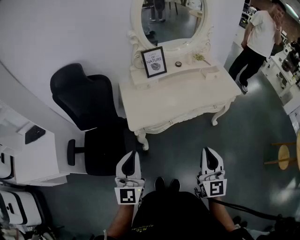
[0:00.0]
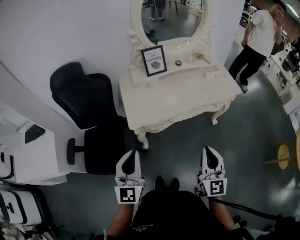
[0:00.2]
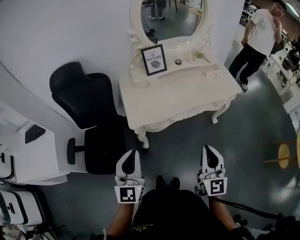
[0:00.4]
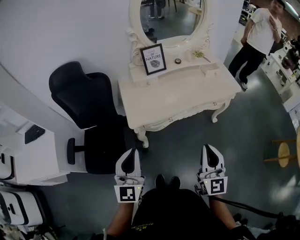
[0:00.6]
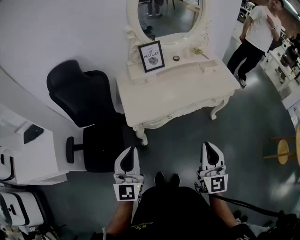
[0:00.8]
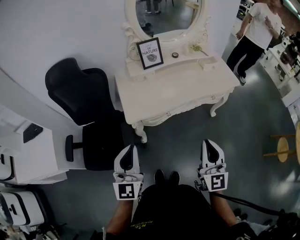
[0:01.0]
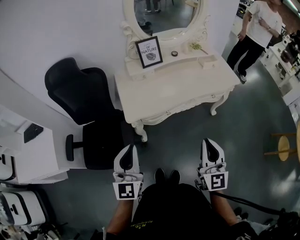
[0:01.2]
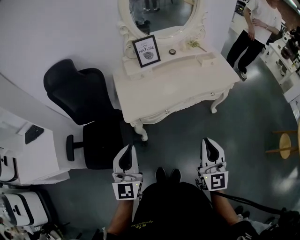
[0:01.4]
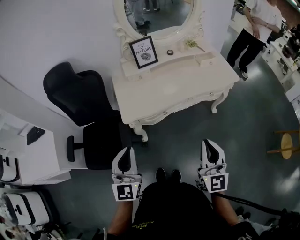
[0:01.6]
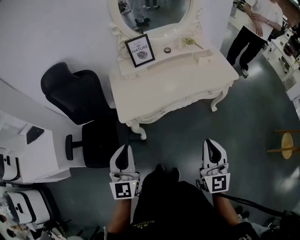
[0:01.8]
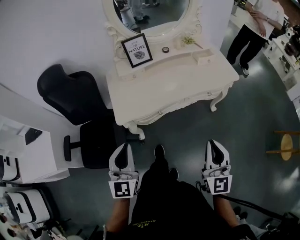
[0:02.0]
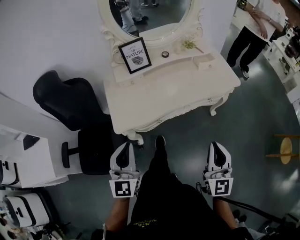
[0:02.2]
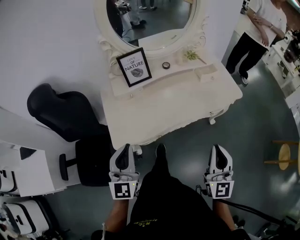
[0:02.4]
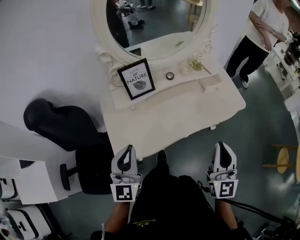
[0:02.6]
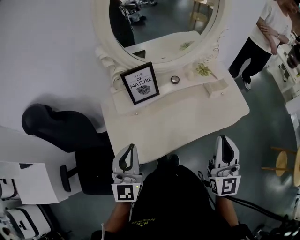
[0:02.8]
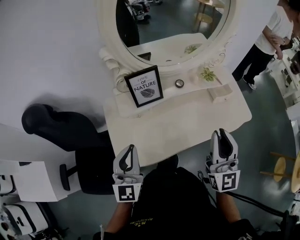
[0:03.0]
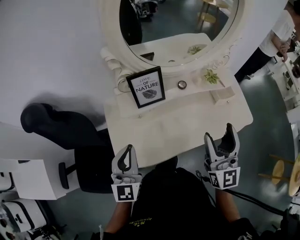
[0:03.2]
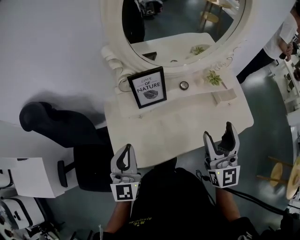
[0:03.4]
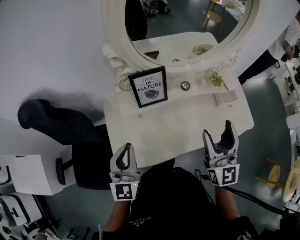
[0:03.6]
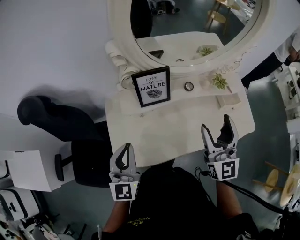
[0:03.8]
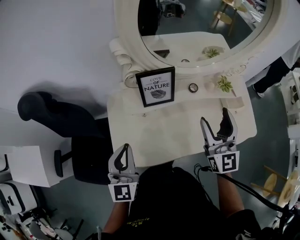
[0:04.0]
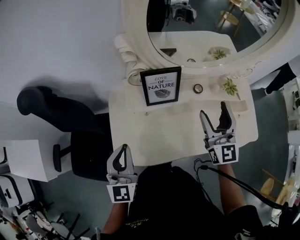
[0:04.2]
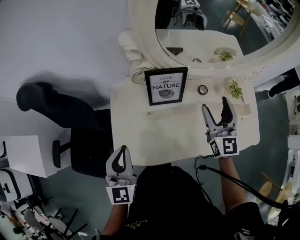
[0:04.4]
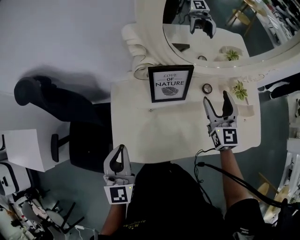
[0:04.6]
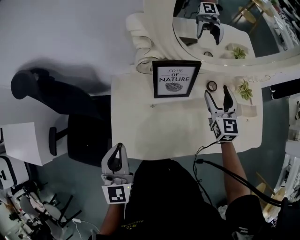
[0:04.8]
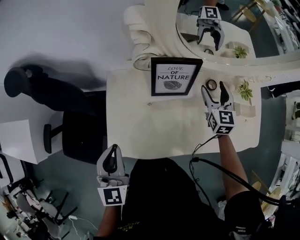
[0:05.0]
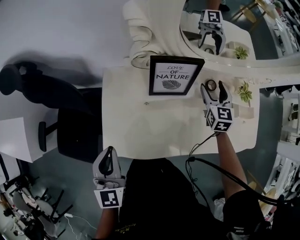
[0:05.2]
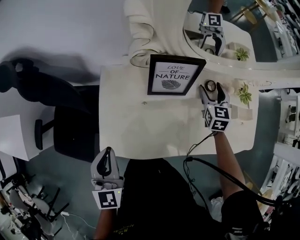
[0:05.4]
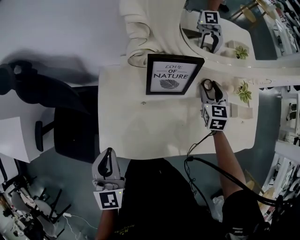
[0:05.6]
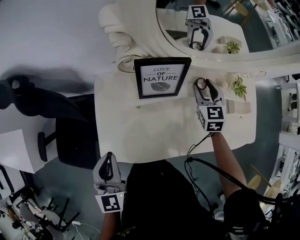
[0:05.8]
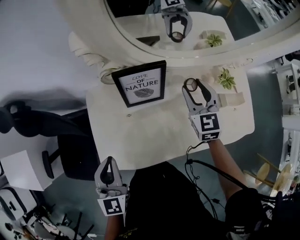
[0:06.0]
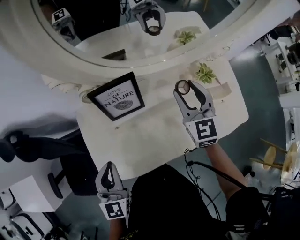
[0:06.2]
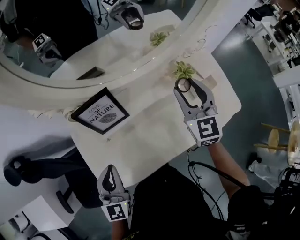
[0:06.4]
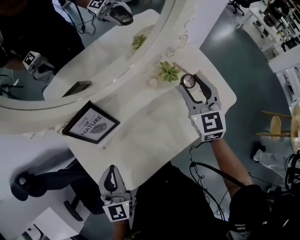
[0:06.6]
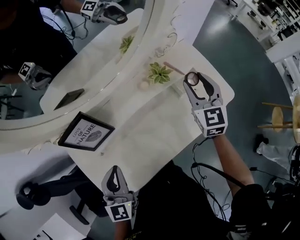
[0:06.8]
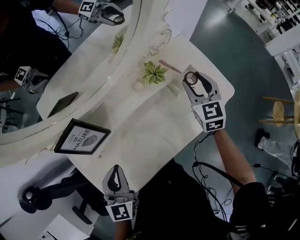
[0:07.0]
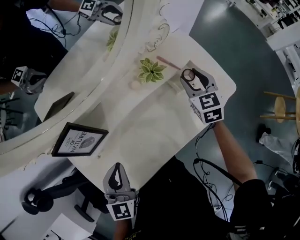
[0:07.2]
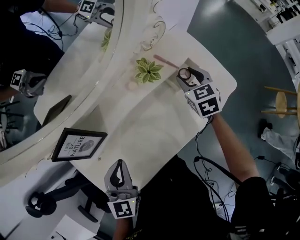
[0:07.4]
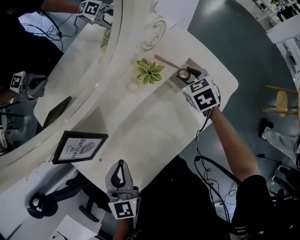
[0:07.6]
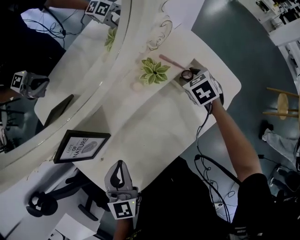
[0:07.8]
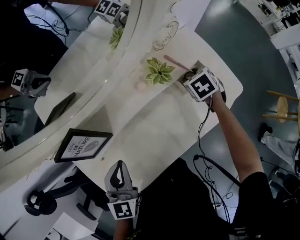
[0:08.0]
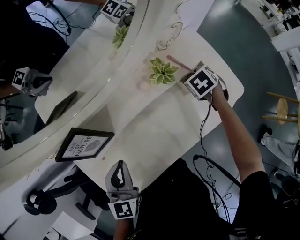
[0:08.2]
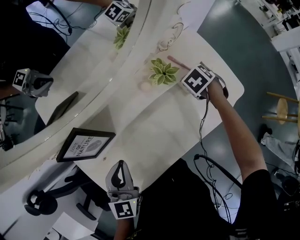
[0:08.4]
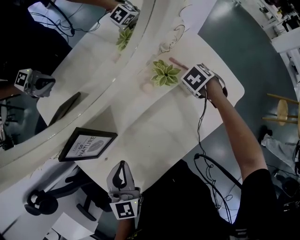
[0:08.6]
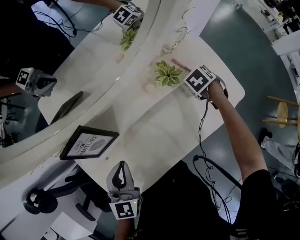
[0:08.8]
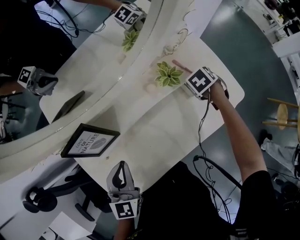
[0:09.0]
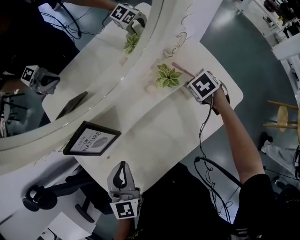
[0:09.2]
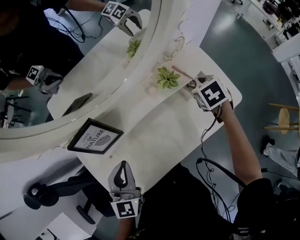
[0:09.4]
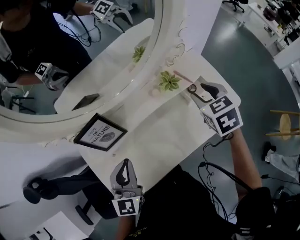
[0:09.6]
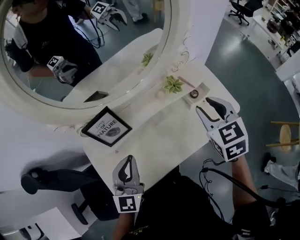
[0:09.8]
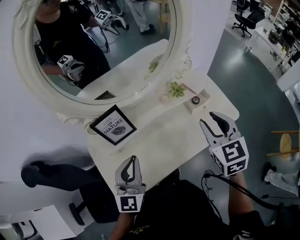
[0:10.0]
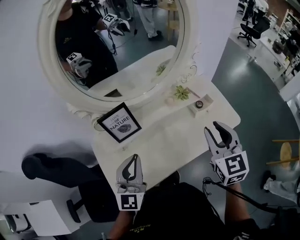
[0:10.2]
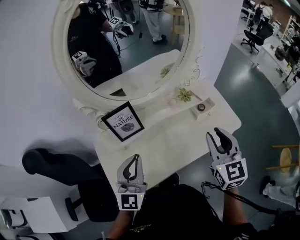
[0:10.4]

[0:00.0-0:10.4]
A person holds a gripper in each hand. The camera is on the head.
0:00.0 to 0:01.4: The grippers make only small movements.
0:01.4 to 0:03.0: The two grippers go about 35 cm forward.
0:03.0 to 0:04.4: The left gripper is displaced to the left by roughly 5 cm, while the right gripper heads forward and downward, covering roughly 25 cm, and opens up.
0:04.4 to 0:06.0: The right gripper shifts roughly 10 cm downward and forward, rotates roughly 20 degrees, and closes up.
0:06.0 to 0:07.4: The right gripper shifts by roughly 30 cm, and rotates some 30 degrees. The left gripper changes place by some 25 cm, and turns by about 30 degrees.
0:07.4 to 0:09.0: The right gripper moves downward, roughly 5 cm, and tilts its fingers about 40 degrees downward.
0:09.0 to 0:10.4: The right gripper moves upward, some 35 cm, and tips its fingers upward by approximately 60 degrees, while the left gripper goes some 15 cm upward, and swivels approximately 20 degrees.

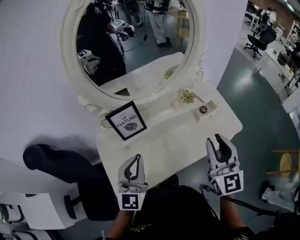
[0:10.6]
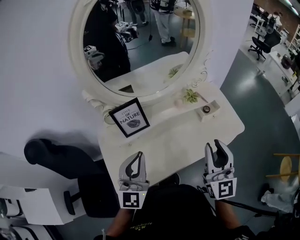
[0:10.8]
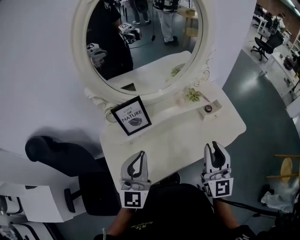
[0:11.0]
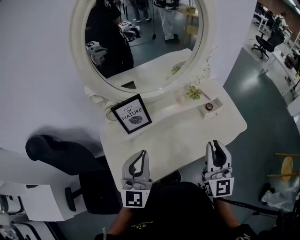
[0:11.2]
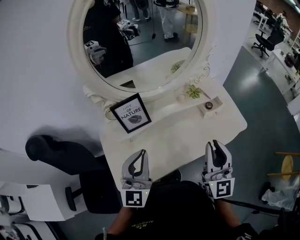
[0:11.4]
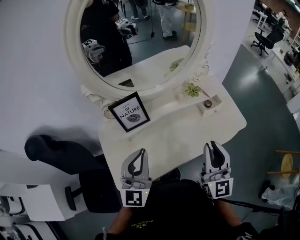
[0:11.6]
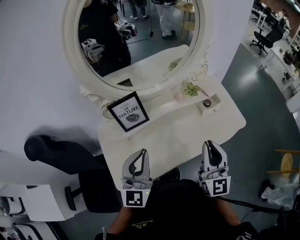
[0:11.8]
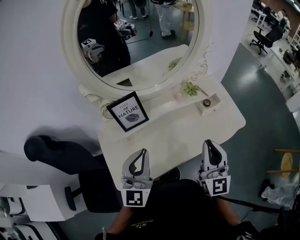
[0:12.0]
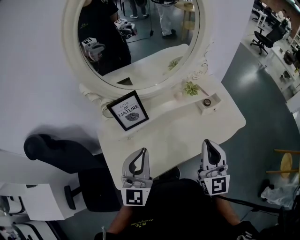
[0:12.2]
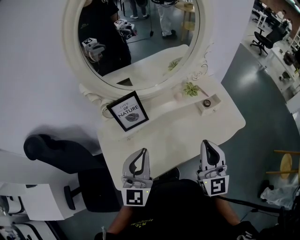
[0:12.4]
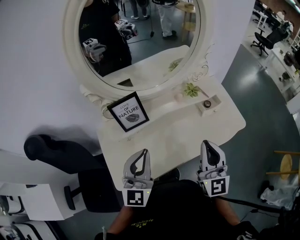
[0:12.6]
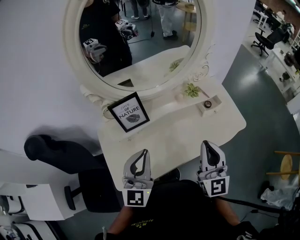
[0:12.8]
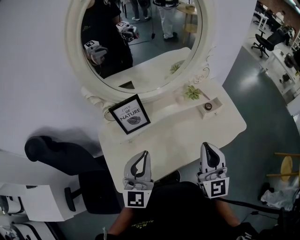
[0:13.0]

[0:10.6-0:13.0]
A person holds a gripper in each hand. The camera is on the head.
0:10.6 to 0:11.8: The right gripper ends up roughly 5 cm from where it was.
0:11.8 to 0:13.0: There are only small adjustments of the grippers.

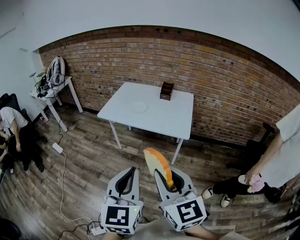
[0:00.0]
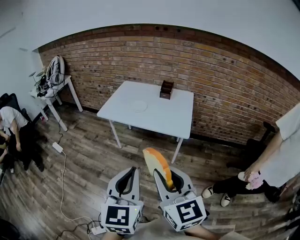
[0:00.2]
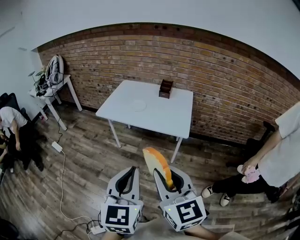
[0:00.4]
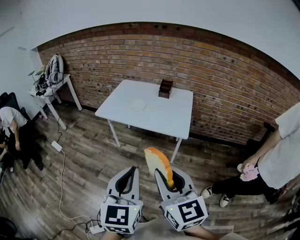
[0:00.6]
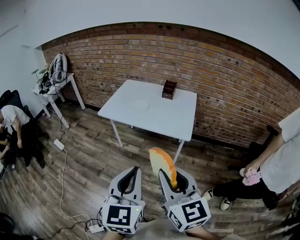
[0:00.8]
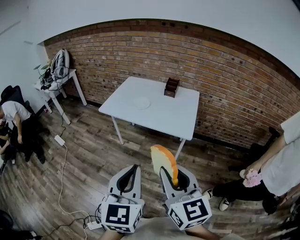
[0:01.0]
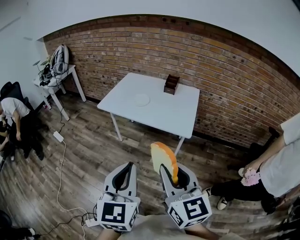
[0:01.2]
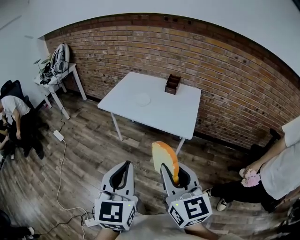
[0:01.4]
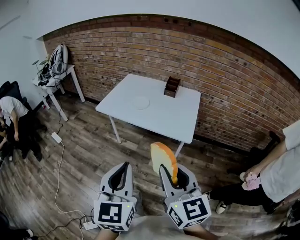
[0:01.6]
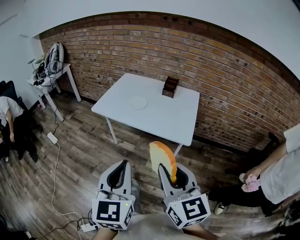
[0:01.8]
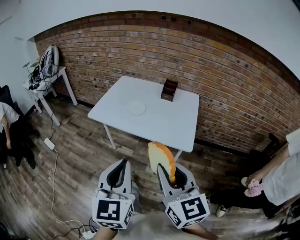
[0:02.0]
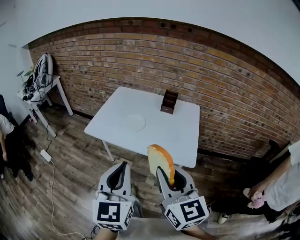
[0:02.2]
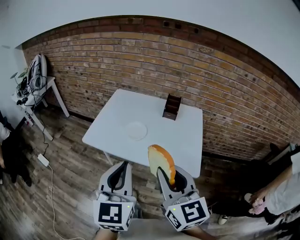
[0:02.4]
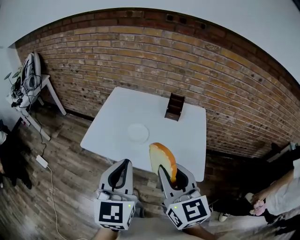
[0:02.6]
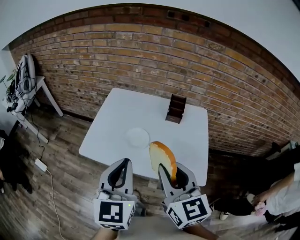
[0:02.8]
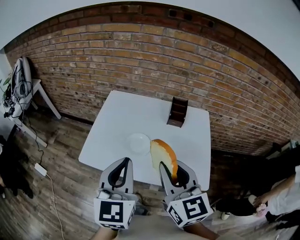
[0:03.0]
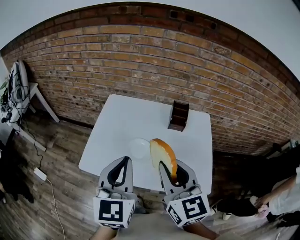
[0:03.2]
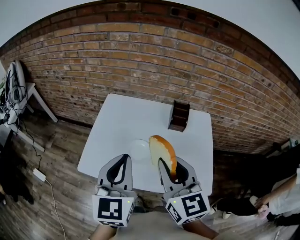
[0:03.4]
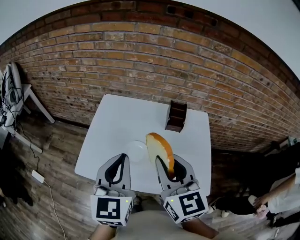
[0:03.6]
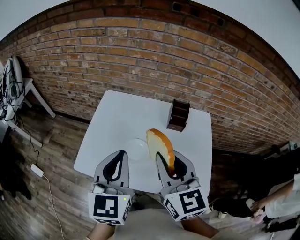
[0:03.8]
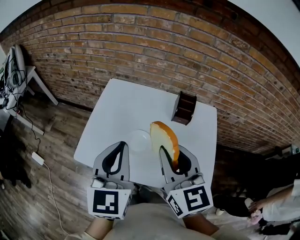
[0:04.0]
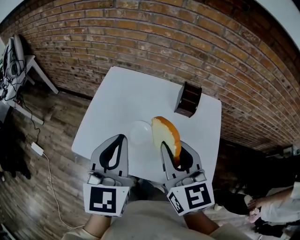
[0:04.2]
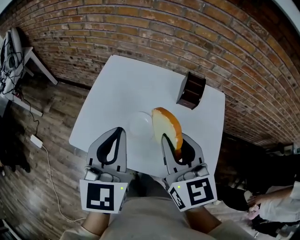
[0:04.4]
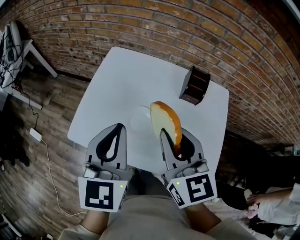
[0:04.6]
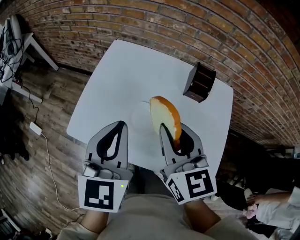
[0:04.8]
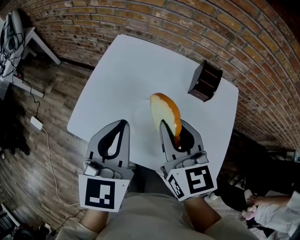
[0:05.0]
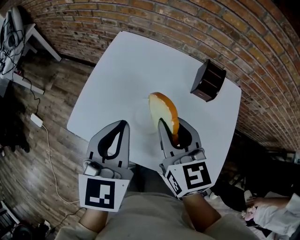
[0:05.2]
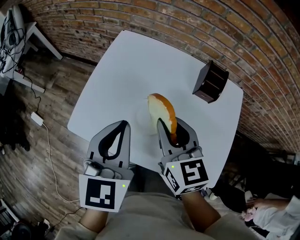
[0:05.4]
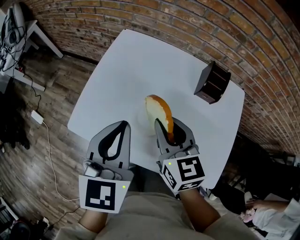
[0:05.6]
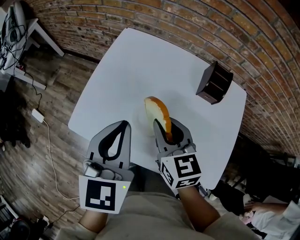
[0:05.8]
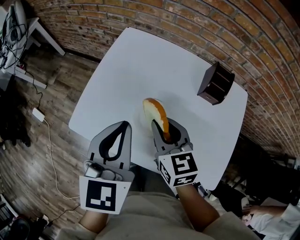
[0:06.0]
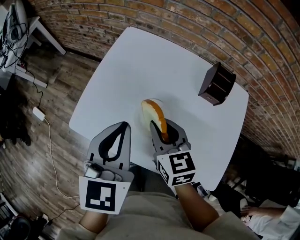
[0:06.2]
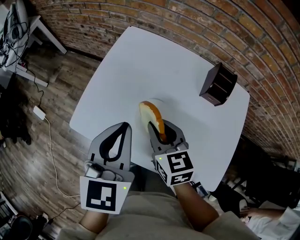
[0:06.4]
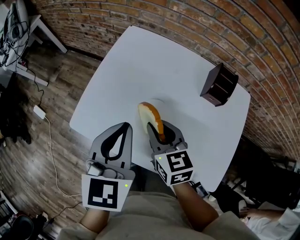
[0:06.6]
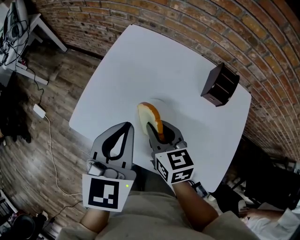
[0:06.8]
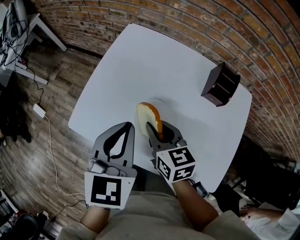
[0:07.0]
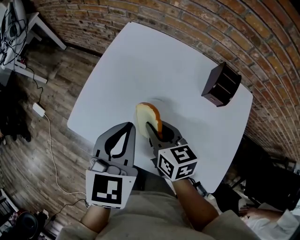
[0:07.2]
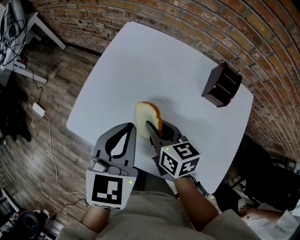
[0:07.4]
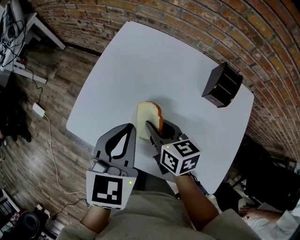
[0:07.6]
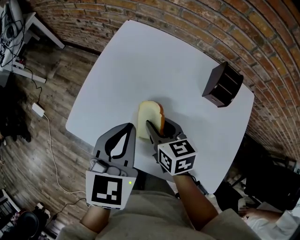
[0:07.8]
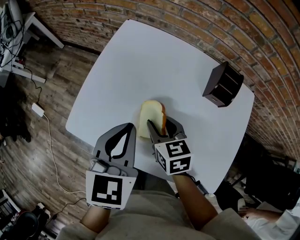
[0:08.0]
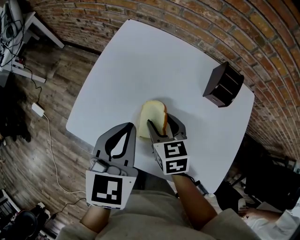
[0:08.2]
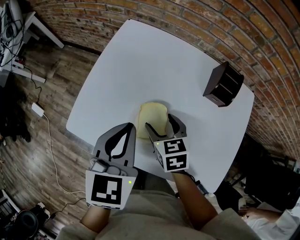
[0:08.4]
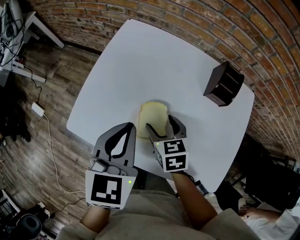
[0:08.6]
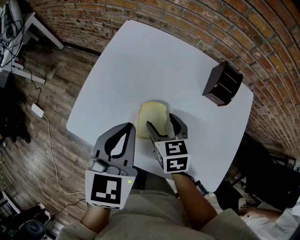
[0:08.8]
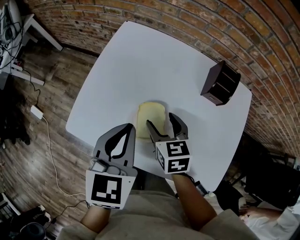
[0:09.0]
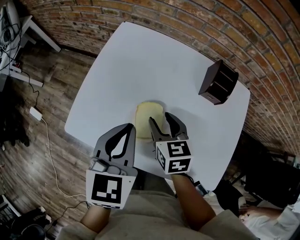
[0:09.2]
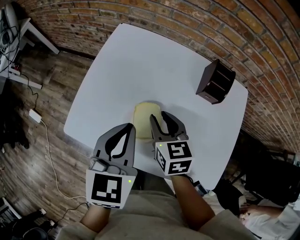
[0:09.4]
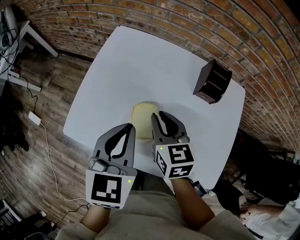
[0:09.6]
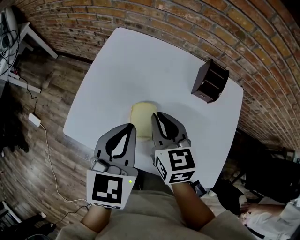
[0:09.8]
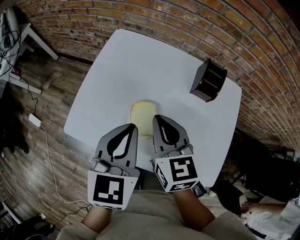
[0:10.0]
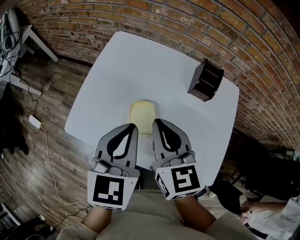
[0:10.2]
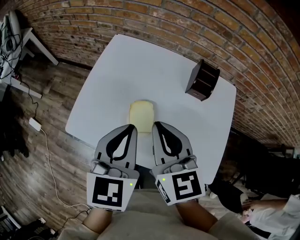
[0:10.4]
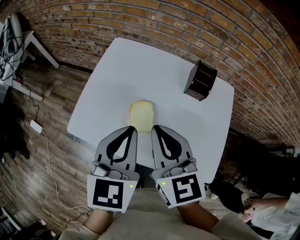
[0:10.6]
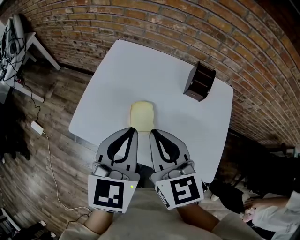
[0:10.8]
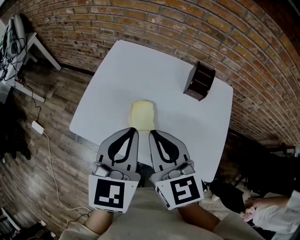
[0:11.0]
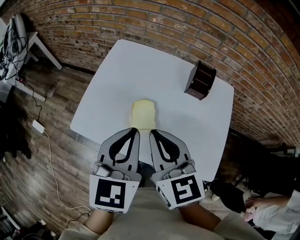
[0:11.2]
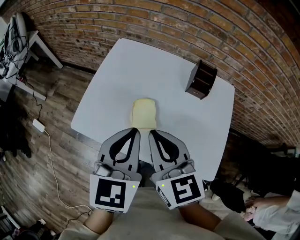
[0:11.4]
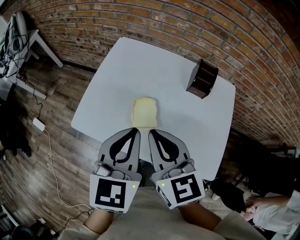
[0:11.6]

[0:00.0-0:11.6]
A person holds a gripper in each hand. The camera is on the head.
0:00.0 to 0:01.4: The right gripper goes approximately 5 cm to the right and forward; the left gripper shifts by roughly 5 cm.
0:01.4 to 0:02.8: The pair of grippers is taken forward, about 40 cm.
0:02.8 to 0:04.4: The grippers both shift forward by approximately 15 cm.
0:04.4 to 0:05.8: The left gripper moves downward, some 5 cm. Meanwhile the right gripper goes some 15 cm downward and forward.
0:05.8 to 0:07.2: The right gripper moves downward, roughly 5 cm.
0:07.2 to 0:08.8: The right gripper moves approximately 5 cm, and opens.
0:08.8 to 0:10.2: The left gripper moves approximately 5 cm. The right gripper heads upward, covering some 15 cm, turns by roughly 20 degrees, and closes its fingers.
0:10.2 to 0:11.6: Both grippers move backward, some 5 cm.
